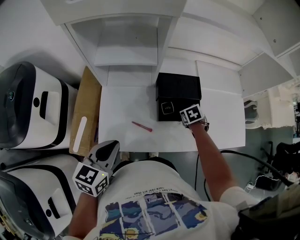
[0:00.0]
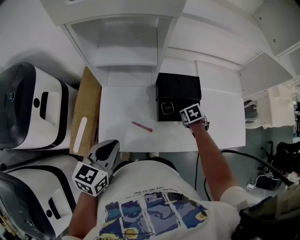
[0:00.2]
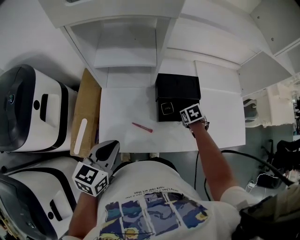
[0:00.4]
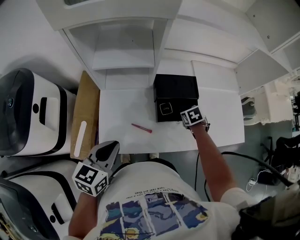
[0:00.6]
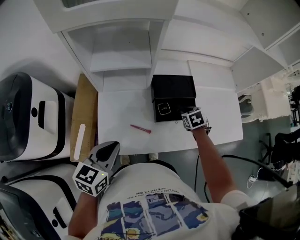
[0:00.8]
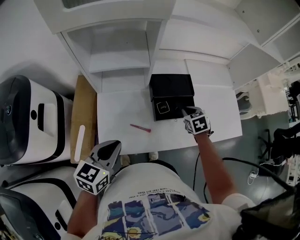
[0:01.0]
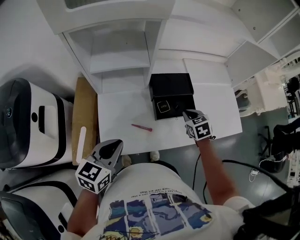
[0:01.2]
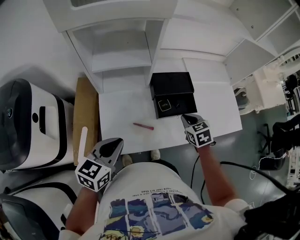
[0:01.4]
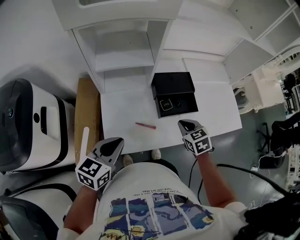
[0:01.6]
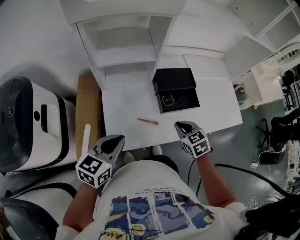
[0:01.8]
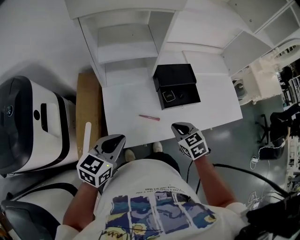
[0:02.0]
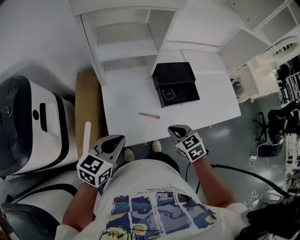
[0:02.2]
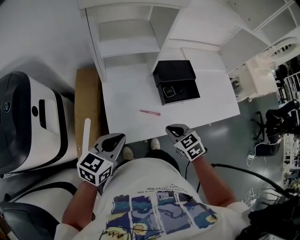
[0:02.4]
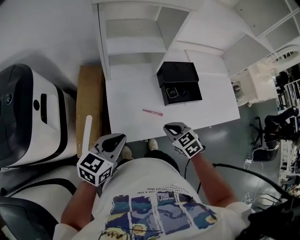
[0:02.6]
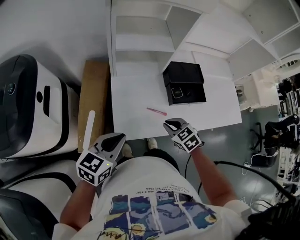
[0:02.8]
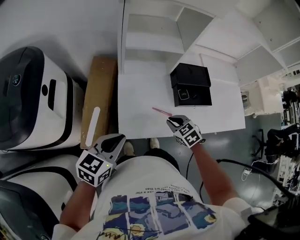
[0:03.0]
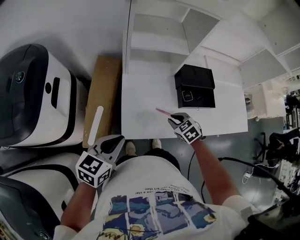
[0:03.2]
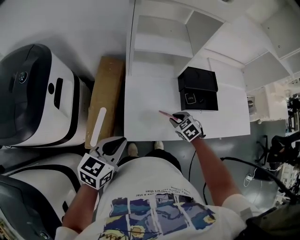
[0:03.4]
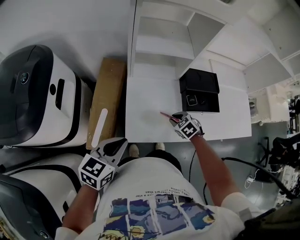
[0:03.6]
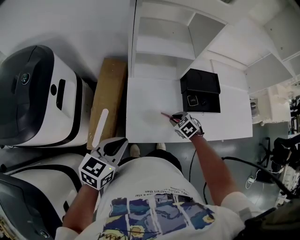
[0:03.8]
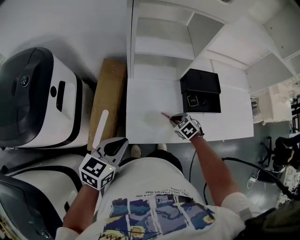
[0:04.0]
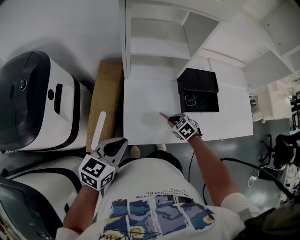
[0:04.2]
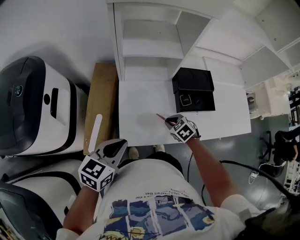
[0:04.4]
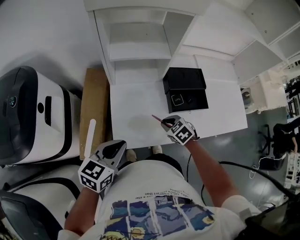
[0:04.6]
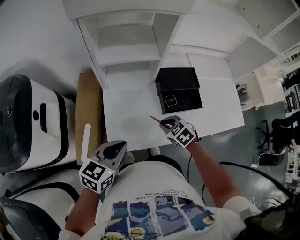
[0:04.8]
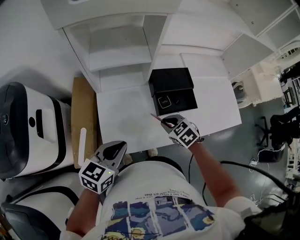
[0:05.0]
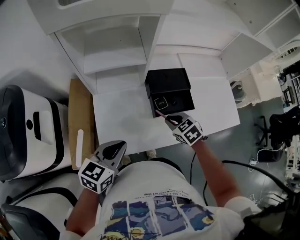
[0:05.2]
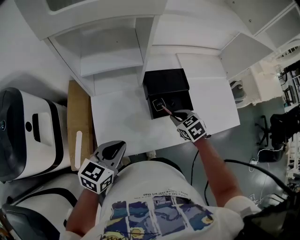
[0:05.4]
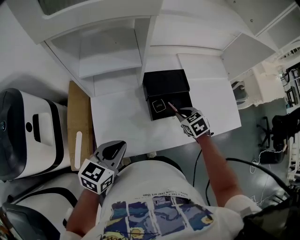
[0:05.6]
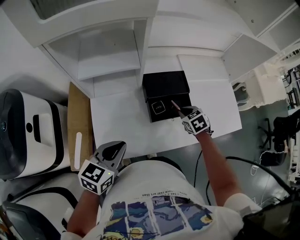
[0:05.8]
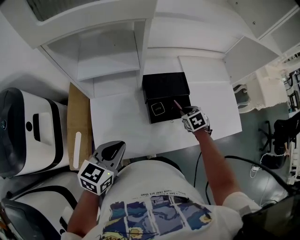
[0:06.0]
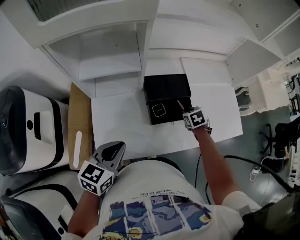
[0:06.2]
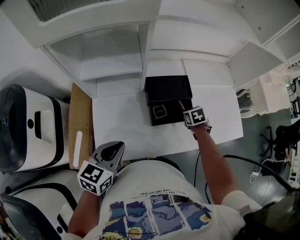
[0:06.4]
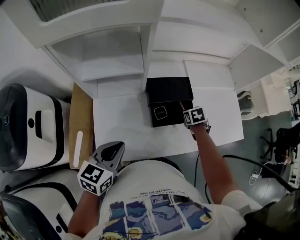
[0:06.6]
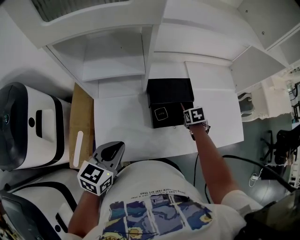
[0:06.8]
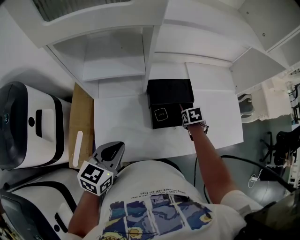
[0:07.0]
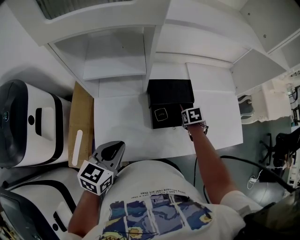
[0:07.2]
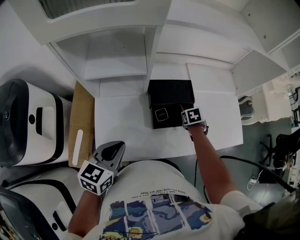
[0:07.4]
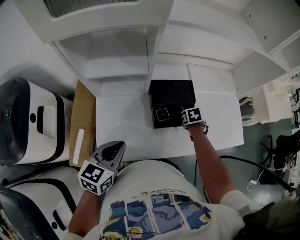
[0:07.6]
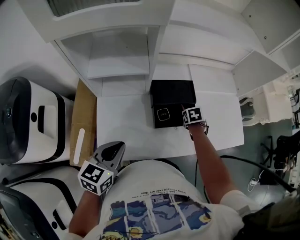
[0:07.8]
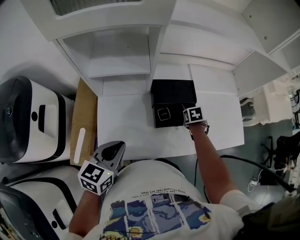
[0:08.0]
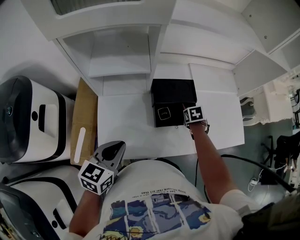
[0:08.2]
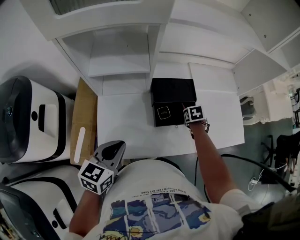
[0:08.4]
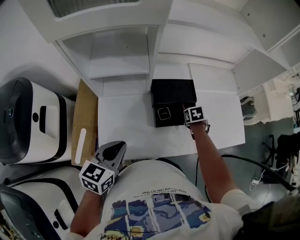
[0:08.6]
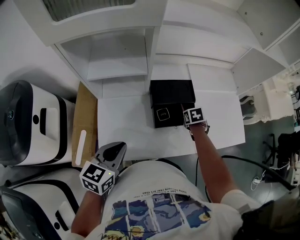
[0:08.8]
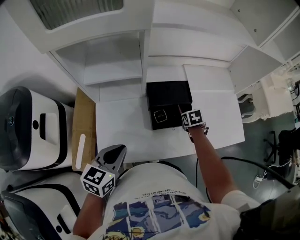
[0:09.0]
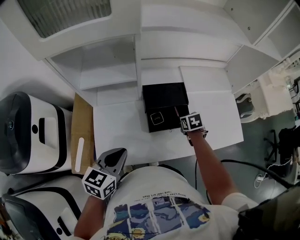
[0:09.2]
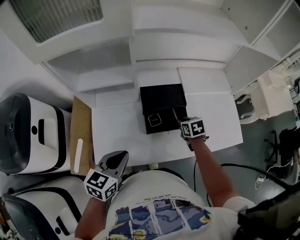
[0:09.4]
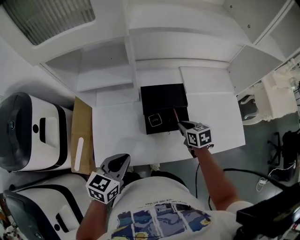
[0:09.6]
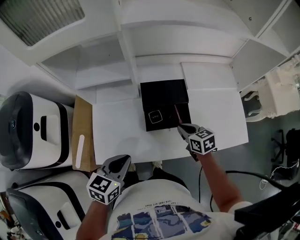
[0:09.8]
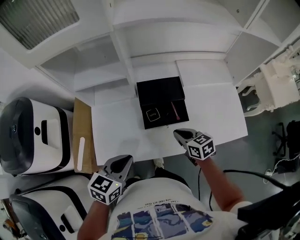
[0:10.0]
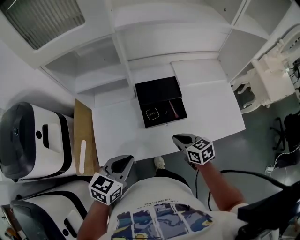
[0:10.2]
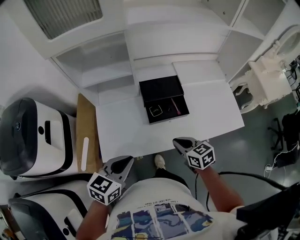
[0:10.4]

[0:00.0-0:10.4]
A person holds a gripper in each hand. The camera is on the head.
0:00.0 to 0:01.4: The right gripper moves upward and backward, approximately 15 cm, and changes its angle by roughly 20 degrees.
0:01.4 to 0:03.0: The right gripper shifts about 20 cm to the left, backward and downward, and changes its angle by about 20 degrees; the left gripper goes some 10 cm to the left and backward.
0:03.0 to 0:04.4: The right gripper goes some 5 cm downward.
0:04.4 to 0:06.0: The right gripper travels to the right and forward by about 25 cm, and turns by roughly 30 degrees. Meanwhile the left gripper shifts roughly 15 cm to the right and forward.
0:06.0 to 0:07.4: The right gripper ends up roughly 5 cm from where it was.
0:07.4 to 0:09.0: The grippers make only small movements.
0:09.0 to 0:10.4: The left gripper heads backward, covering approximately 10 cm. Meanwhile the right gripper travels backward and upward by about 25 cm, and tips its fingers upward by roughly 30 degrees.

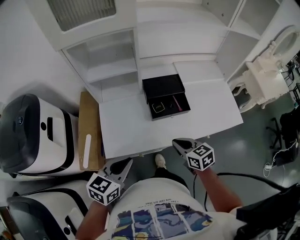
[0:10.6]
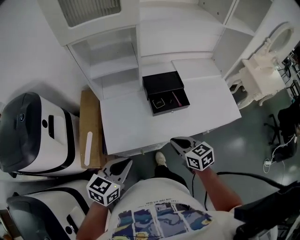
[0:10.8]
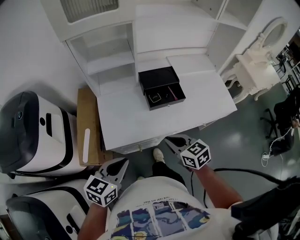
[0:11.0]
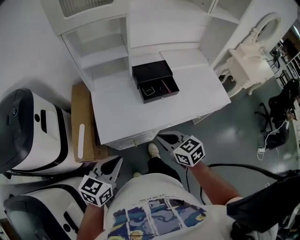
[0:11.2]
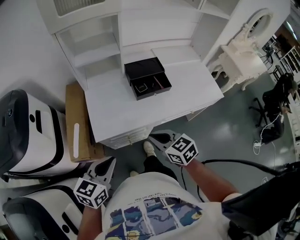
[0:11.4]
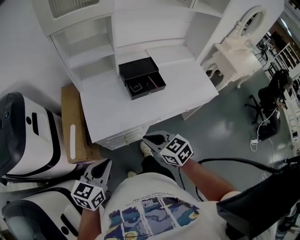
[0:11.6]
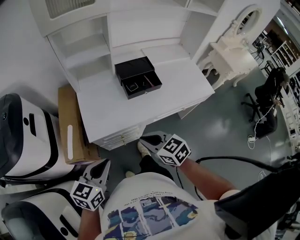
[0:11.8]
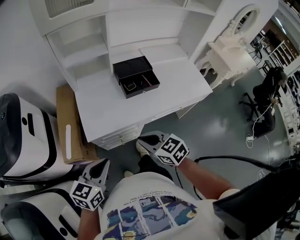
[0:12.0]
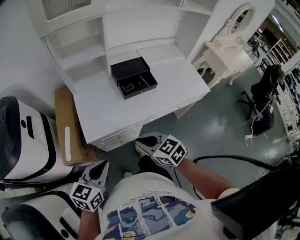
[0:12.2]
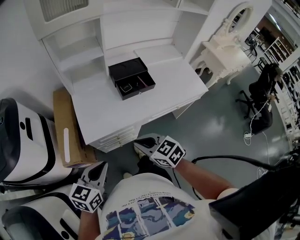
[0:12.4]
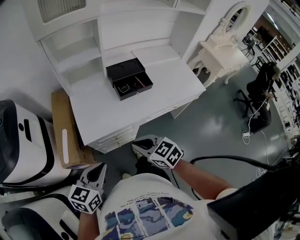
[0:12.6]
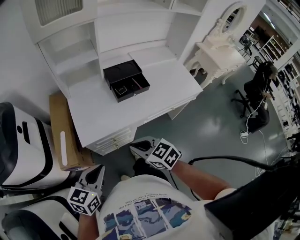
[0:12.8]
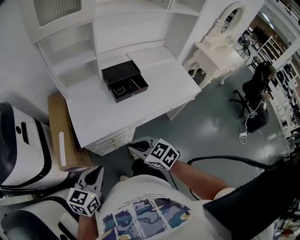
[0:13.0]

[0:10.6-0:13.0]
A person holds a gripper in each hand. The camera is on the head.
0:10.6 to 0:11.8: Both grippers travel together backward and to the left, some 15 cm.
0:11.8 to 0:13.0: The grippers stay close to where they were, moving slightly.

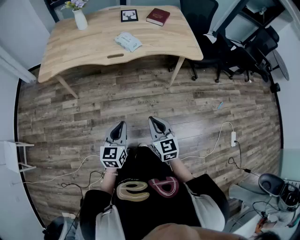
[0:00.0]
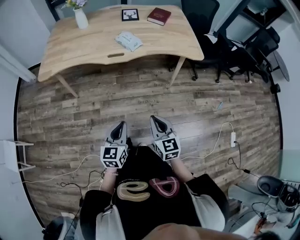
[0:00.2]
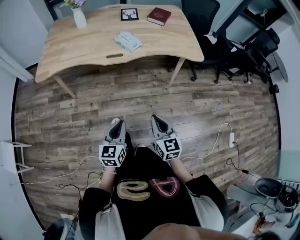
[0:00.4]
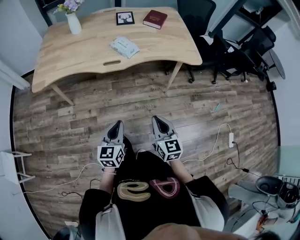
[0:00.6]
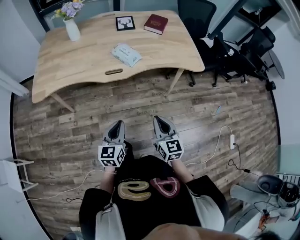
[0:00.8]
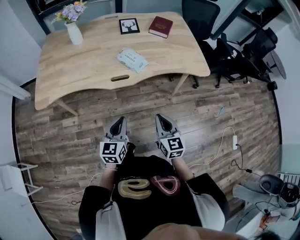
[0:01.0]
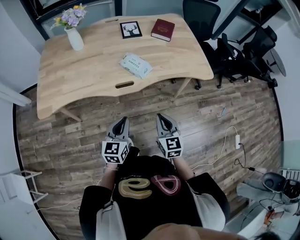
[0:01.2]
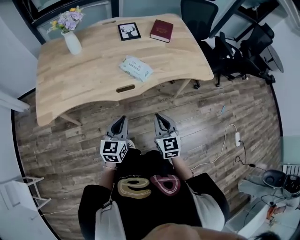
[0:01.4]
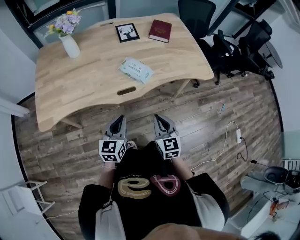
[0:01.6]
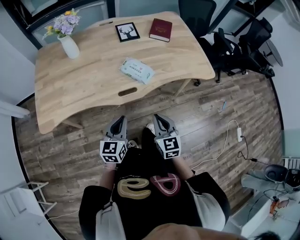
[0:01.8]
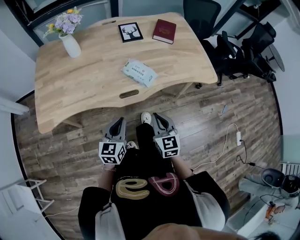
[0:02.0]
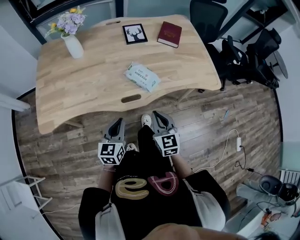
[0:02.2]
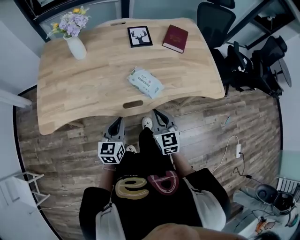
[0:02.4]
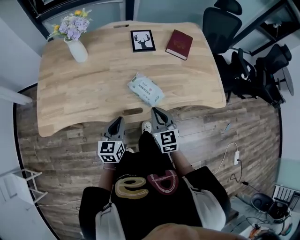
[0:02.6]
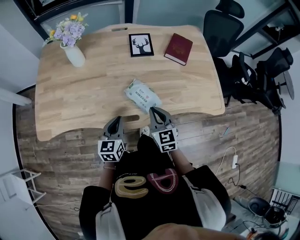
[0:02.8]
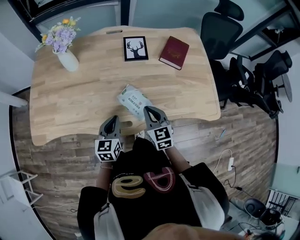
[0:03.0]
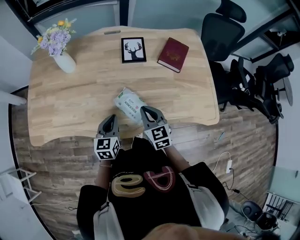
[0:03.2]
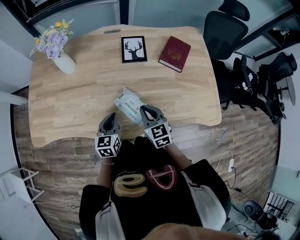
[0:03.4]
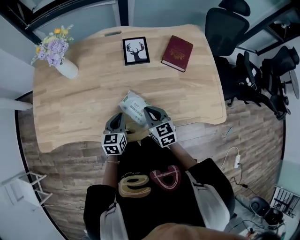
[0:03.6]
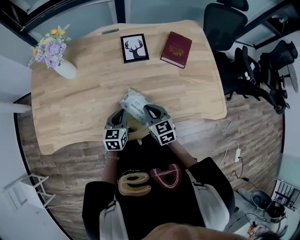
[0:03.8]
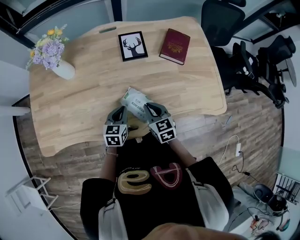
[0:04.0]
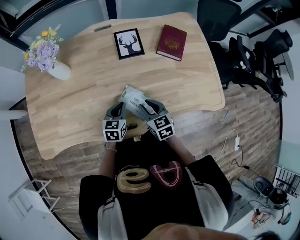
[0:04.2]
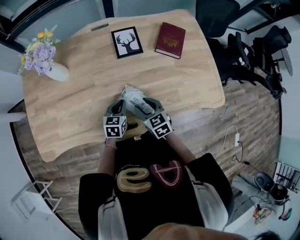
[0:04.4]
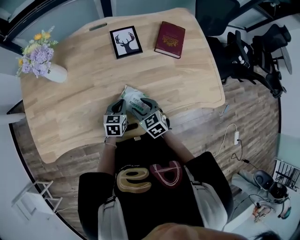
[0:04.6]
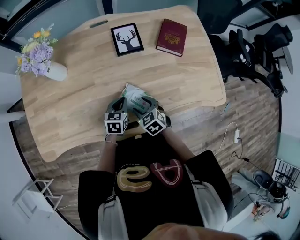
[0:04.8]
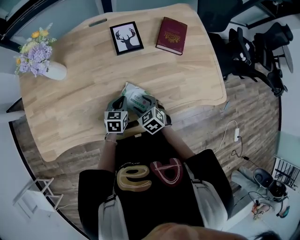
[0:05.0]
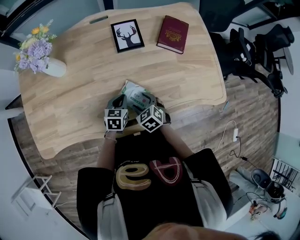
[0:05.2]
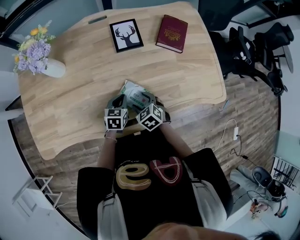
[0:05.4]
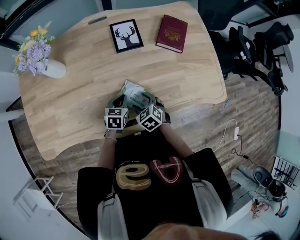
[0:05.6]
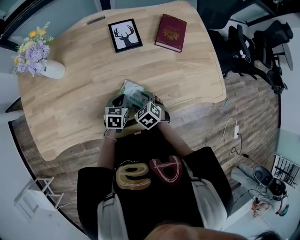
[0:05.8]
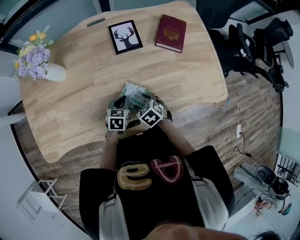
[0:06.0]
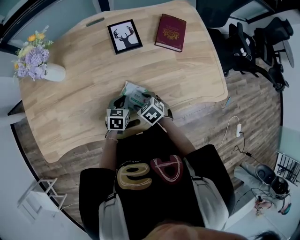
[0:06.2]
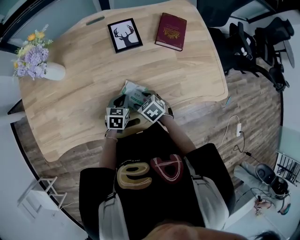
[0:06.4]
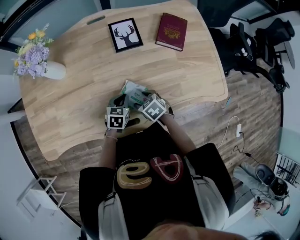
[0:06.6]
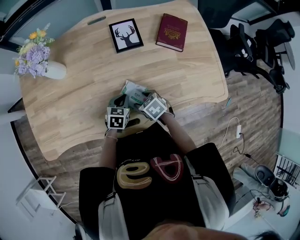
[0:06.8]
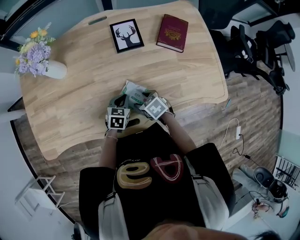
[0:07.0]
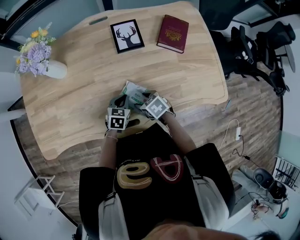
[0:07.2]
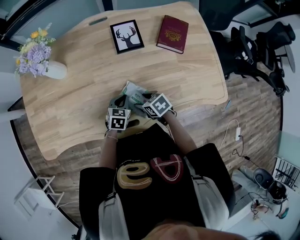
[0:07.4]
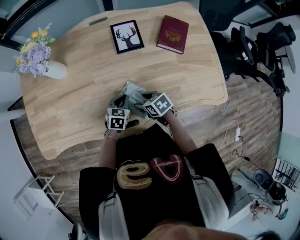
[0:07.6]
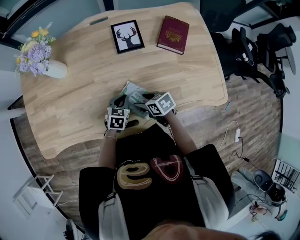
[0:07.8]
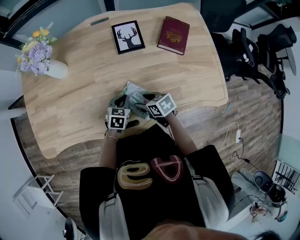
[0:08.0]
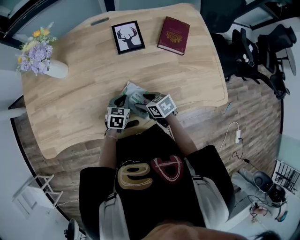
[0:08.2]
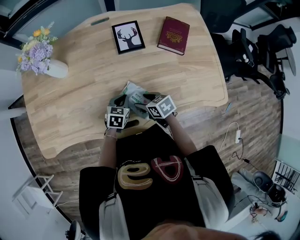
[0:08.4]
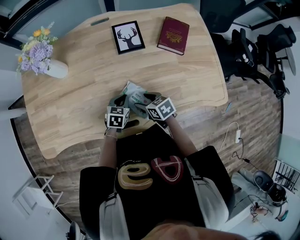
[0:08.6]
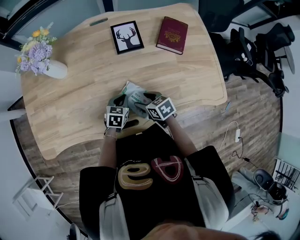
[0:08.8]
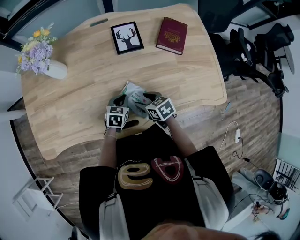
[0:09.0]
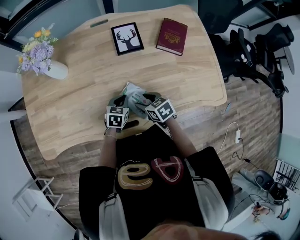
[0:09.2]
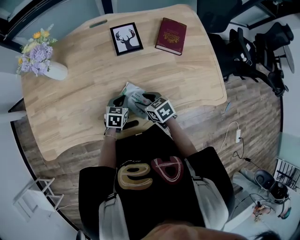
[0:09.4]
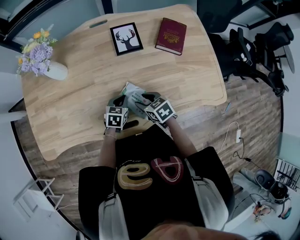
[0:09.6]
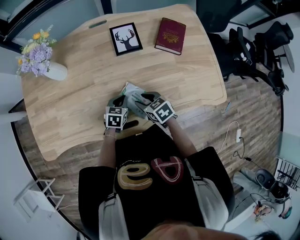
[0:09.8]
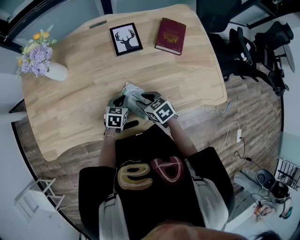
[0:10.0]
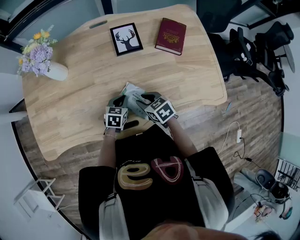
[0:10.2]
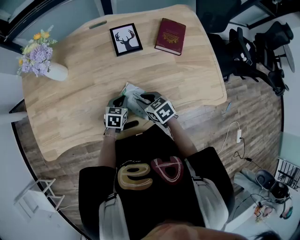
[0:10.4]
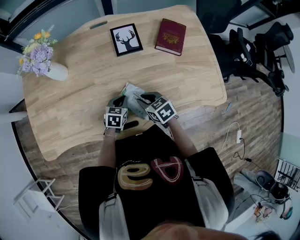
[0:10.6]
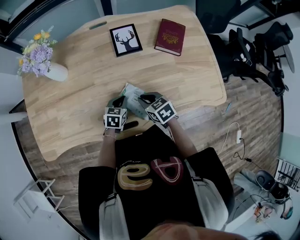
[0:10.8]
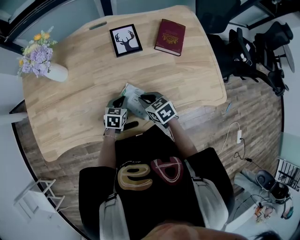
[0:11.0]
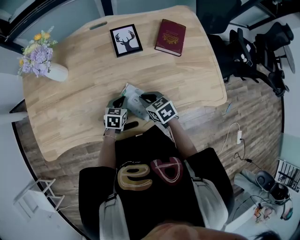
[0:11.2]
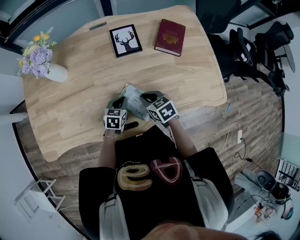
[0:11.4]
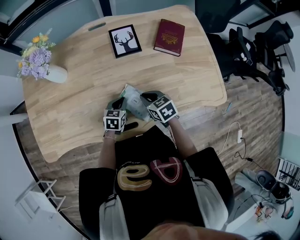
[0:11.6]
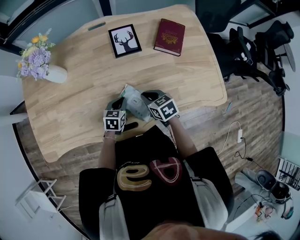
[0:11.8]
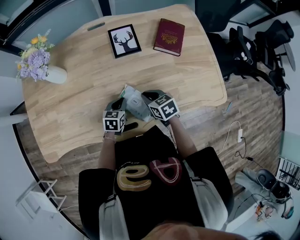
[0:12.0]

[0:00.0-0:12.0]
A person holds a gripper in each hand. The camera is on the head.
0:00.0 to 0:01.6: Both grippers move forward and to the left, some 30 cm.
0:01.6 to 0:03.0: The grippers both shift forward by roughly 25 cm.
0:03.0 to 0:04.4: The right gripper heads downward and forward, covering some 10 cm, and opens up. Meanwhile the left gripper shifts approximately 15 cm forward and downward, and swivels approximately 20 degrees.
0:04.4 to 0:06.0: The right gripper goes roughly 5 cm downward, turns by about 30 degrees, and opens up.
0:06.0 to 0:07.6: The right gripper rotates roughly 20 degrees.
0:07.6 to 0:09.0: There are only small adjustments of the grippers.
0:09.0 to 0:10.4: The right gripper closes.
0:10.4 to 0:12.0: The grippers move only a little.
